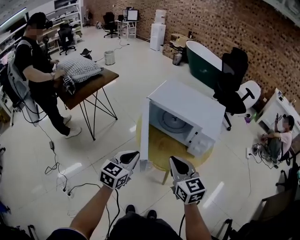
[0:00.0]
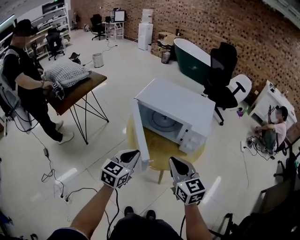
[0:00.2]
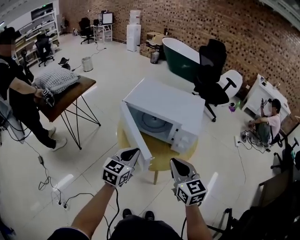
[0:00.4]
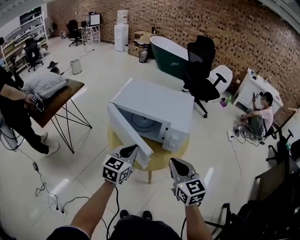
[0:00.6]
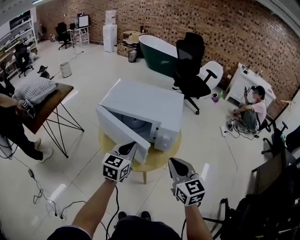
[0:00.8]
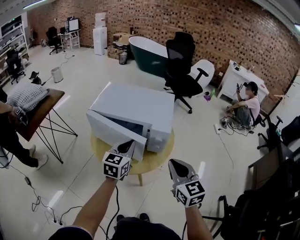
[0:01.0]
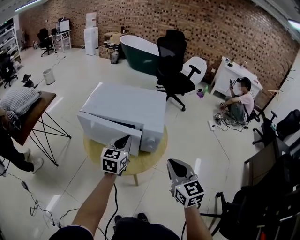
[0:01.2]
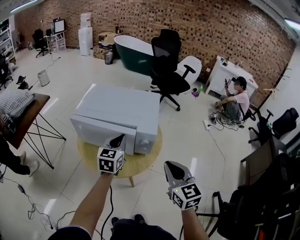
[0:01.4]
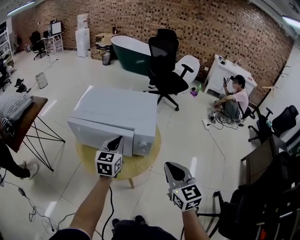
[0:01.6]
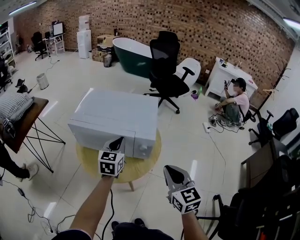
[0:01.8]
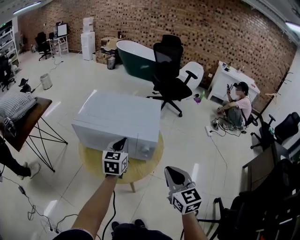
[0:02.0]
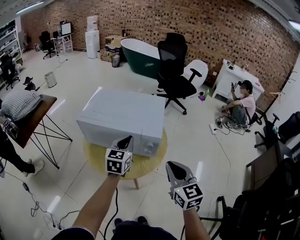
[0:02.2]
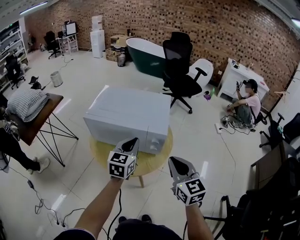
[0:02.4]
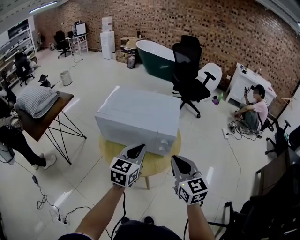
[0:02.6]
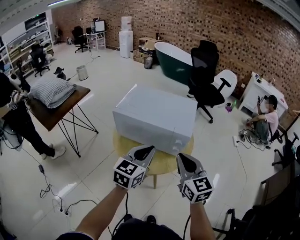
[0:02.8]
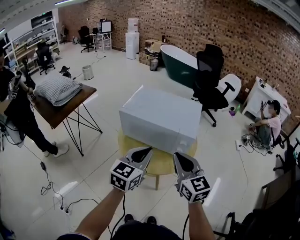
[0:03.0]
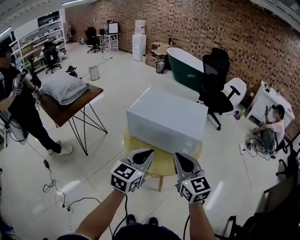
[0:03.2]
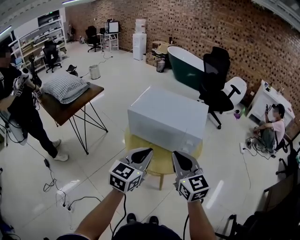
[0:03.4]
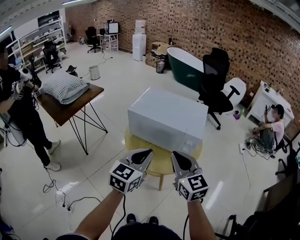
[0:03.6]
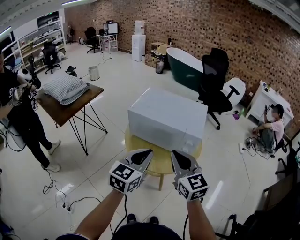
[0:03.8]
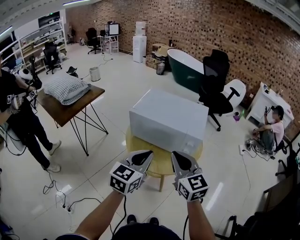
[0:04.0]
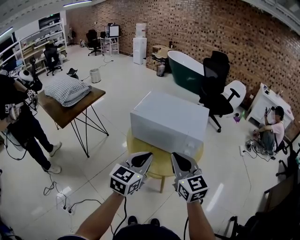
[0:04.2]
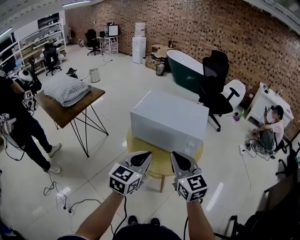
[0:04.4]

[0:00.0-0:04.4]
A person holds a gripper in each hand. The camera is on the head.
0.0 to 1.4 s: The right gripper goes roughly 20 cm to the right, and swivels about 30 degrees, while the left gripper is displaced to the right and forward by roughly 25 cm.
1.4 to 3.0 s: The right gripper heads to the left, covering approximately 10 cm. The left gripper heads backward and upward, covering about 15 cm.
3.0 to 4.4 s: The left gripper changes place by approximately 5 cm, while the right gripper shifts roughly 5 cm to the left.

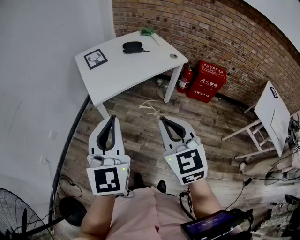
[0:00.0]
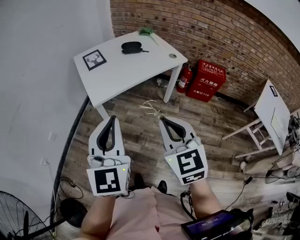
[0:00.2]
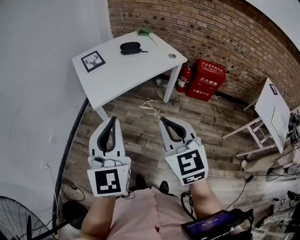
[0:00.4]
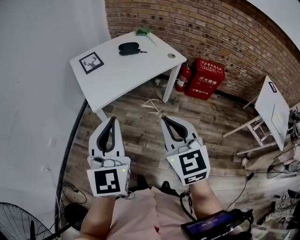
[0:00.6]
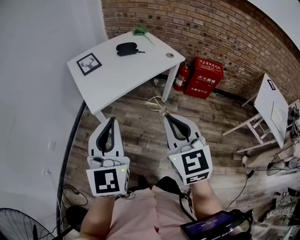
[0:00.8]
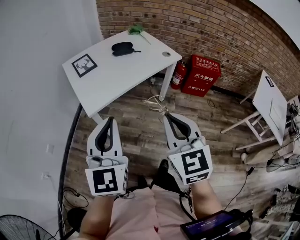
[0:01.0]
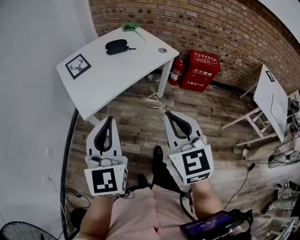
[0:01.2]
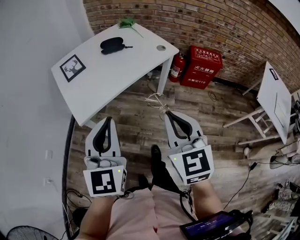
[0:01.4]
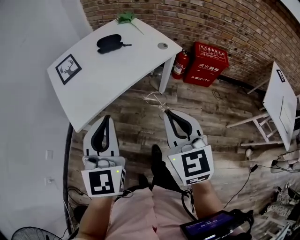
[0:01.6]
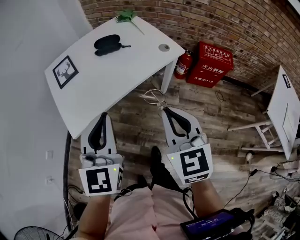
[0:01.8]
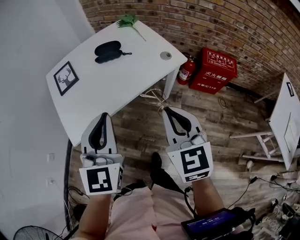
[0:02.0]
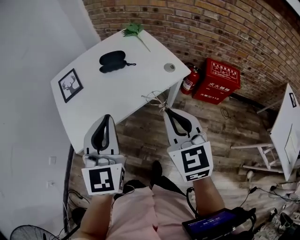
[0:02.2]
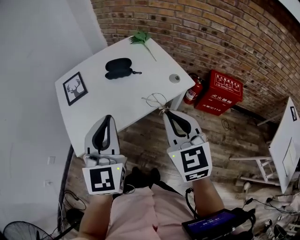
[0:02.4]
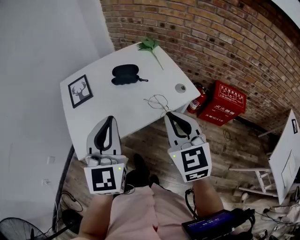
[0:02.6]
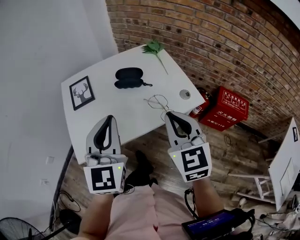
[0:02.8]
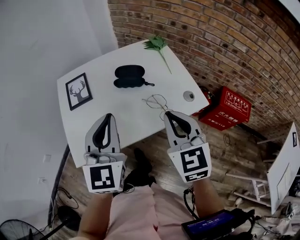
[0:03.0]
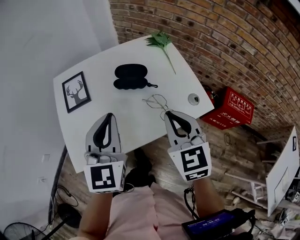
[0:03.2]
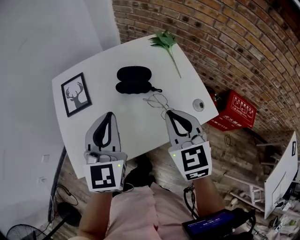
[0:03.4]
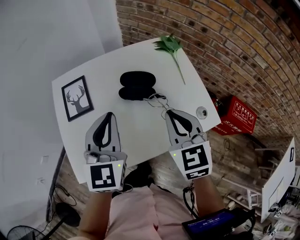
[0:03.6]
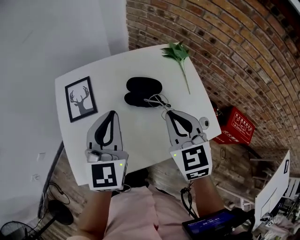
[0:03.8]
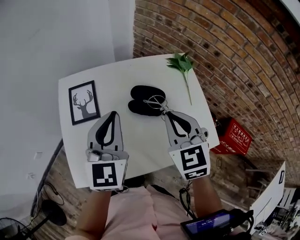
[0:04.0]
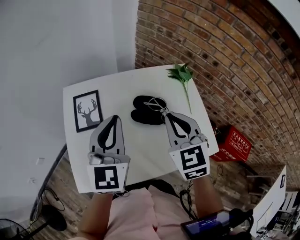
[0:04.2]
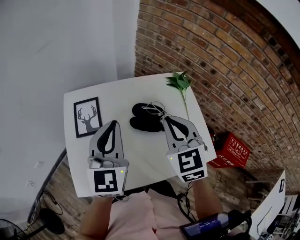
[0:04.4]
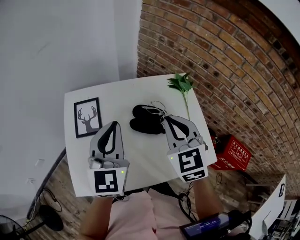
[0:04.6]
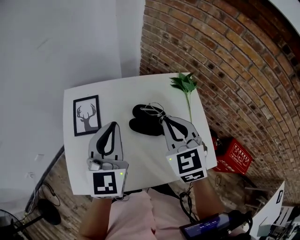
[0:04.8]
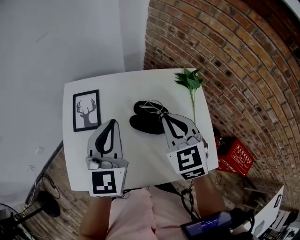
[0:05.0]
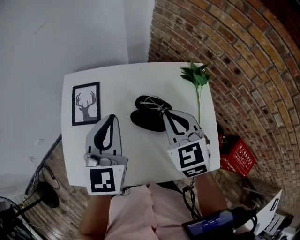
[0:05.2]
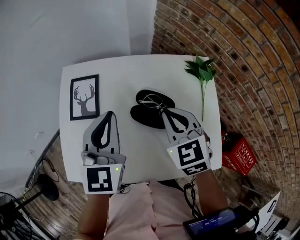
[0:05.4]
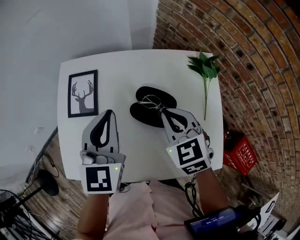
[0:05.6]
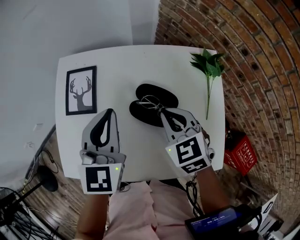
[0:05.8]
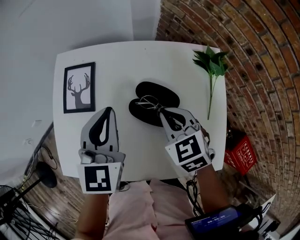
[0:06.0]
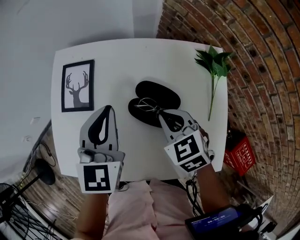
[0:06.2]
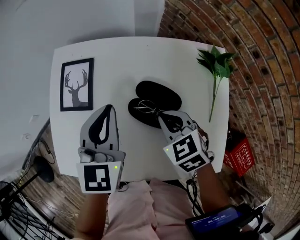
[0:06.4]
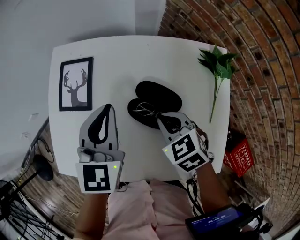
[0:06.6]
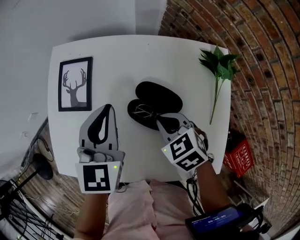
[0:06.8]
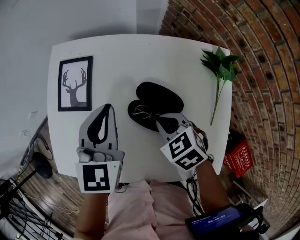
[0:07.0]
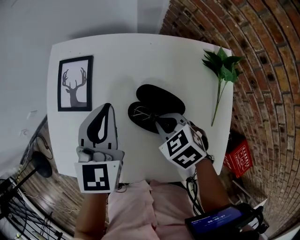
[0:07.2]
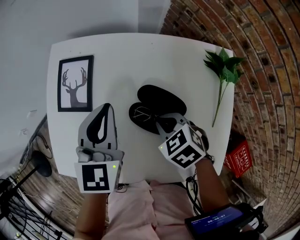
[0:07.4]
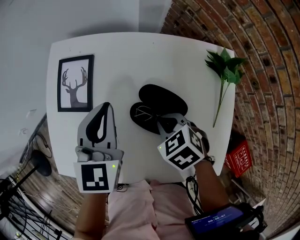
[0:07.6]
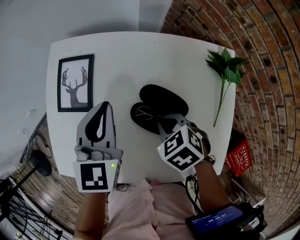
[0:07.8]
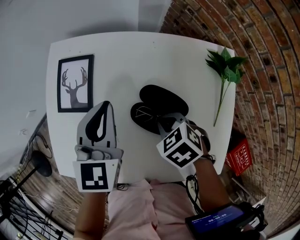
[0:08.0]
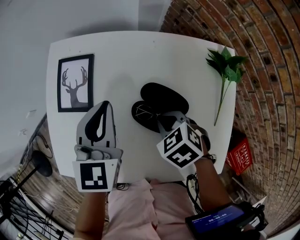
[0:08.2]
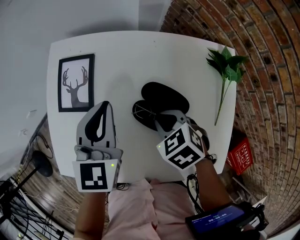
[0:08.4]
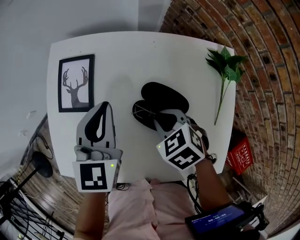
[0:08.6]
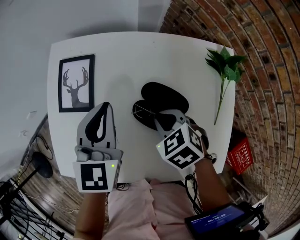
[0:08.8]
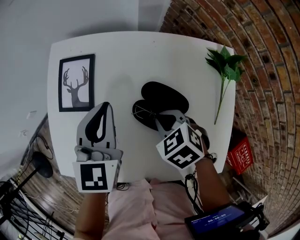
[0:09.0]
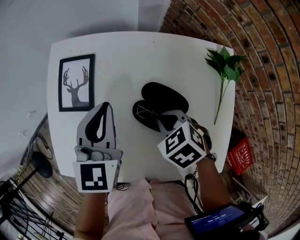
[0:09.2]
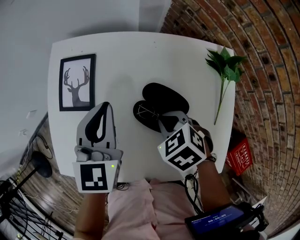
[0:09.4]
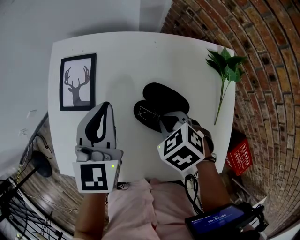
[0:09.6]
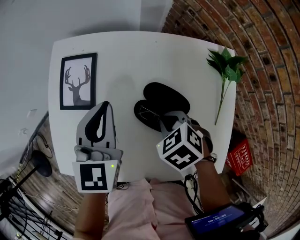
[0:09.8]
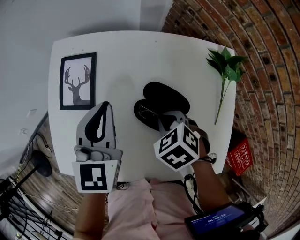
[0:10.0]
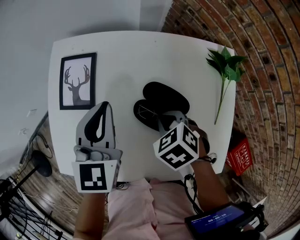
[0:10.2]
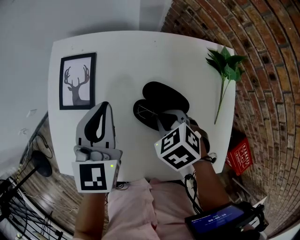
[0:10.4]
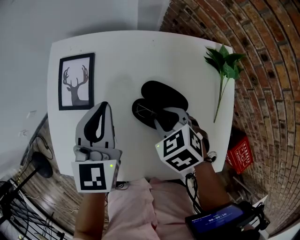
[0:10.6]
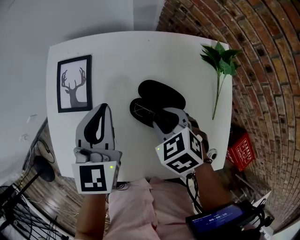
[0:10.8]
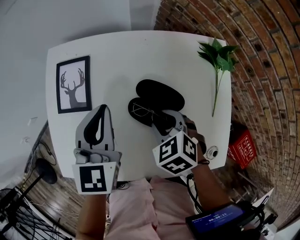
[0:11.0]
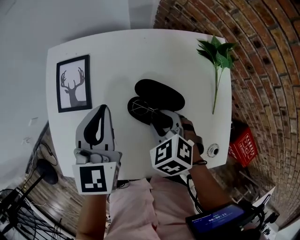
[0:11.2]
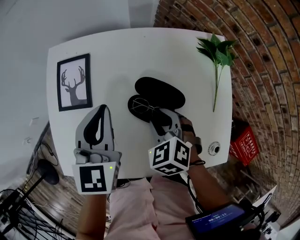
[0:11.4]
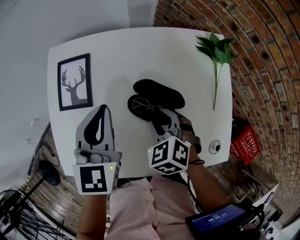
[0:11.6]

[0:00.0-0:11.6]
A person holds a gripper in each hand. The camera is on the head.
0.0 to 1.4 s: The right gripper shifts roughly 15 cm forward and to the right, while the left gripper travels forward by some 15 cm.
1.4 to 2.8 s: Both grippers travel together forward, about 30 cm.
2.8 to 4.4 s: Both grippers travel together forward, approximately 25 cm.
4.4 to 5.8 s: The right gripper moves downward and forward, approximately 15 cm, and changes its angle by roughly 30 degrees. The left gripper moves downward and forward, some 10 cm.
5.8 to 7.2 s: The right gripper moves downward, roughly 10 cm, and changes its angle by about 30 degrees; the left gripper shifts by some 5 cm.
7.2 to 10.2 s: The grippers stay close to where they were, moving slightly.
10.2 to 11.6 s: The right gripper opens its fingers.

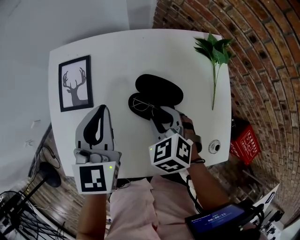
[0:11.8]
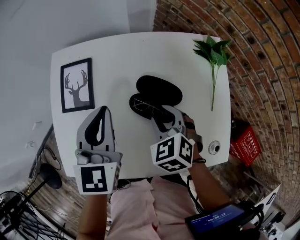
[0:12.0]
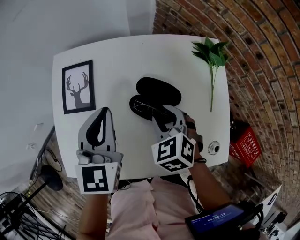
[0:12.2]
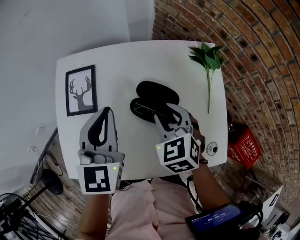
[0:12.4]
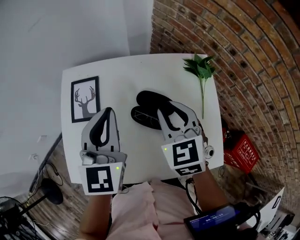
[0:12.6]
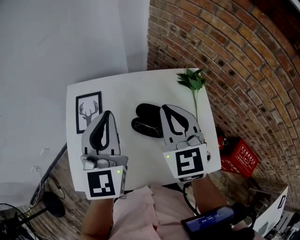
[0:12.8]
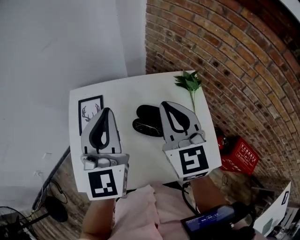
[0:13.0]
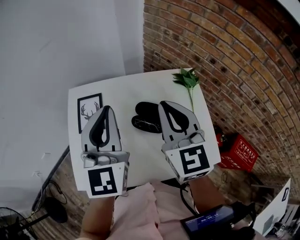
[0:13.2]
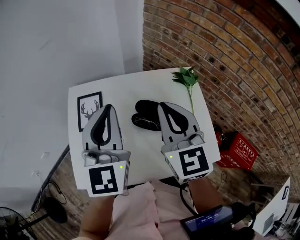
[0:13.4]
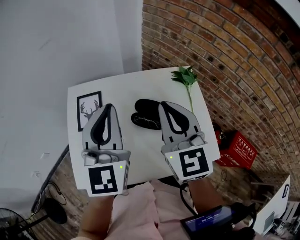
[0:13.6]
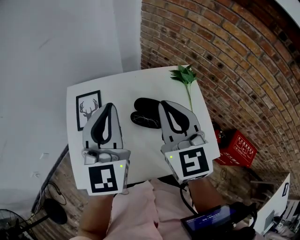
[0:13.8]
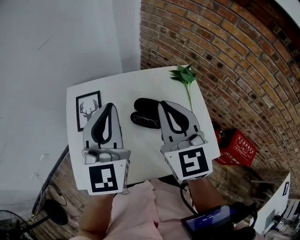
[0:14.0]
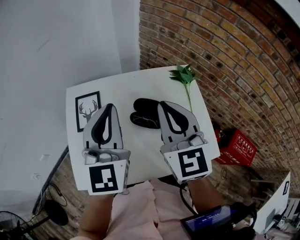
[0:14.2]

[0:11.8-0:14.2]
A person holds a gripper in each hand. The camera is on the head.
11.8 to 13.0 s: The right gripper goes about 30 cm upward, tips its fingers upward by approximately 50 degrees, and closes. Meanwhile the left gripper heads upward, covering roughly 20 cm, and swivels some 20 degrees.
13.0 to 14.2 s: The grippers move only a little.

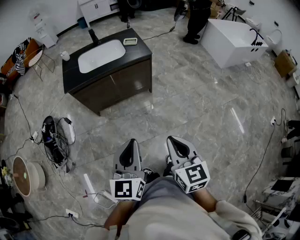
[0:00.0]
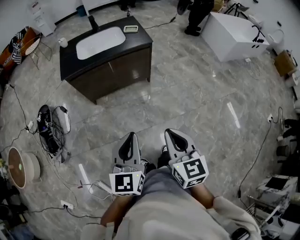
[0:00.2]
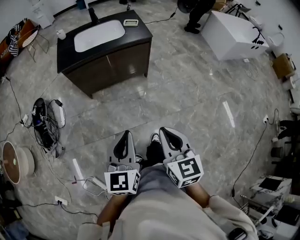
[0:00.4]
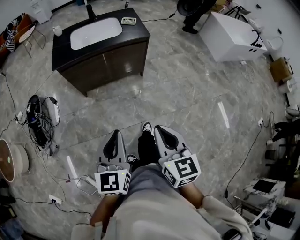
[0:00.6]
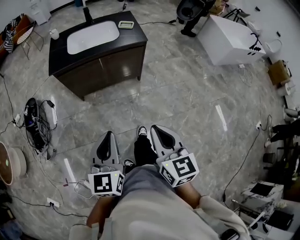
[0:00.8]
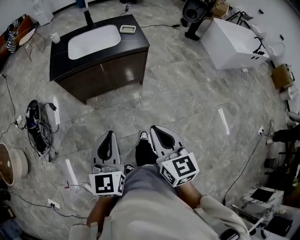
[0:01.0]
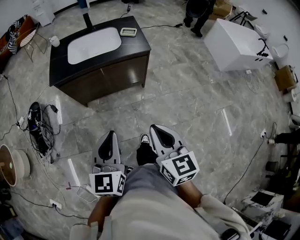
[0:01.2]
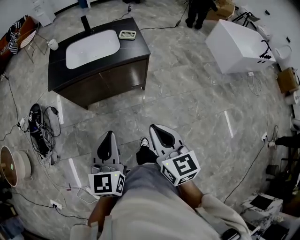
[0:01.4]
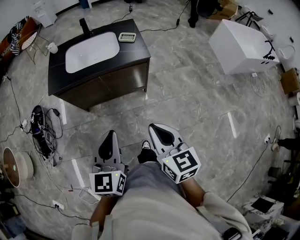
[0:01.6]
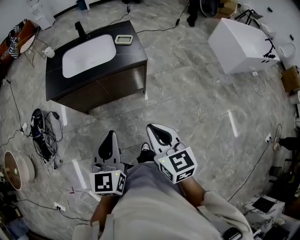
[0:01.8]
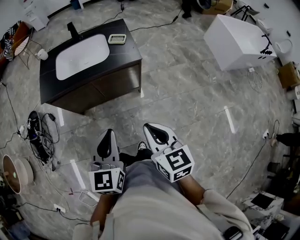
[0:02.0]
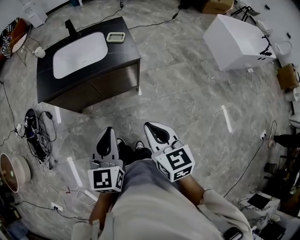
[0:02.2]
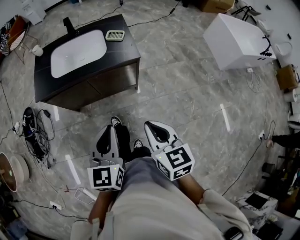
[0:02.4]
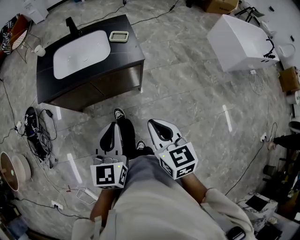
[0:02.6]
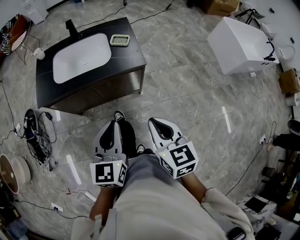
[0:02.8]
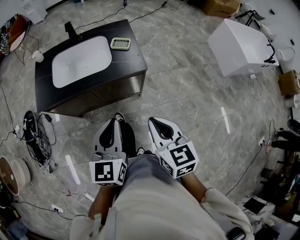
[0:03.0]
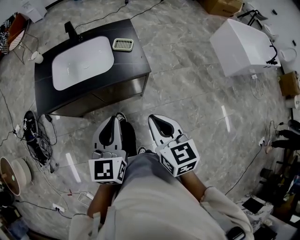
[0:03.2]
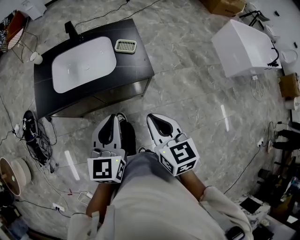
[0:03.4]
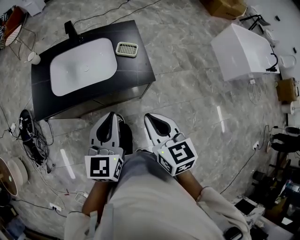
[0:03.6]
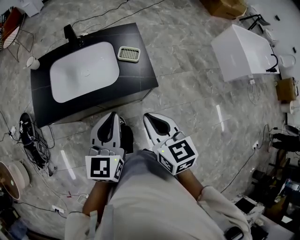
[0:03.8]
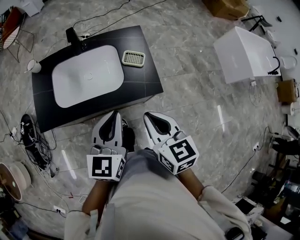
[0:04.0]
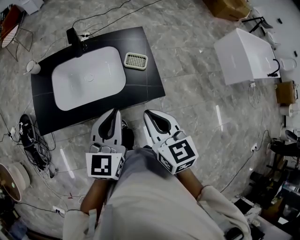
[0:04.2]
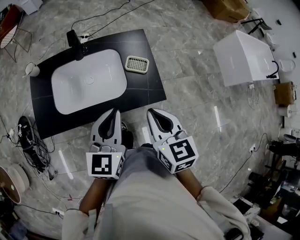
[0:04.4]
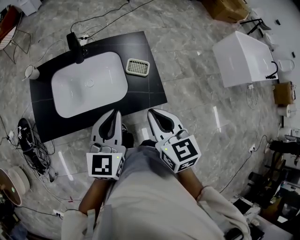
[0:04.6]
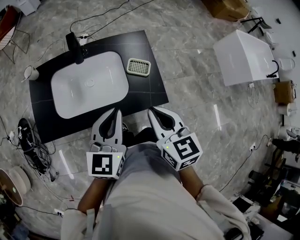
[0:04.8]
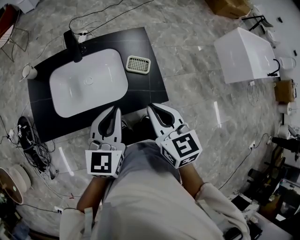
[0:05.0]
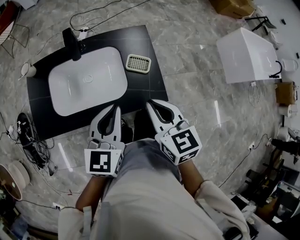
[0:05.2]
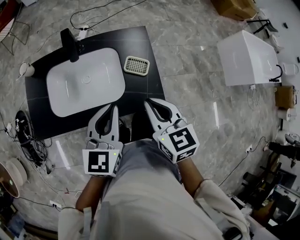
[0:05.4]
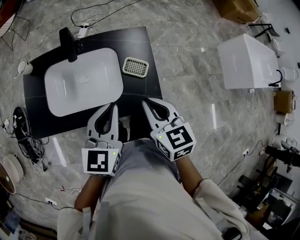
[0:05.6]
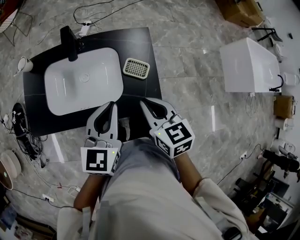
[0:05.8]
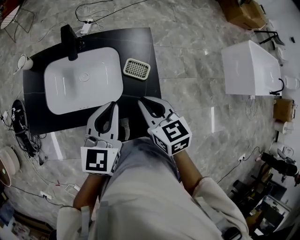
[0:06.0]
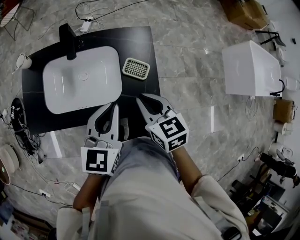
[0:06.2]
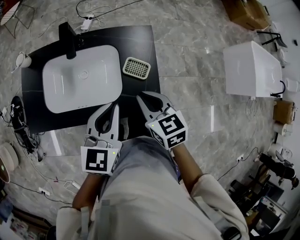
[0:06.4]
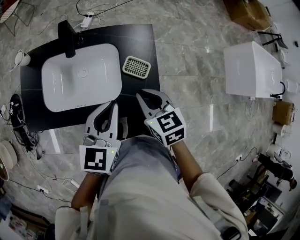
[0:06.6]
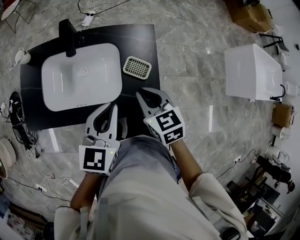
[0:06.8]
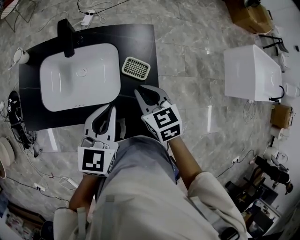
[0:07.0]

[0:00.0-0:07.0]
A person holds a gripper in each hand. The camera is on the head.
0.0 to 1.4 s: Both grippers move forward, roughly 20 cm.
1.4 to 2.8 s: The right gripper travels forward by approximately 15 cm; the left gripper moves forward and to the right, some 20 cm.
2.8 to 4.2 s: Both grippers travel together forward, some 30 cm.
4.2 to 5.6 s: The grippers both shift forward by approximately 10 cm.
5.6 to 7.0 s: The right gripper shifts approximately 10 cm forward and downward.
